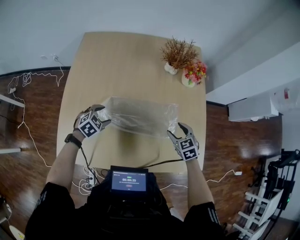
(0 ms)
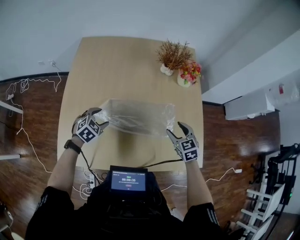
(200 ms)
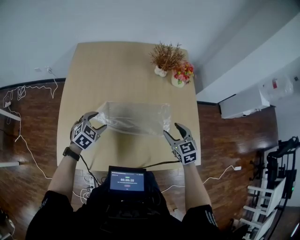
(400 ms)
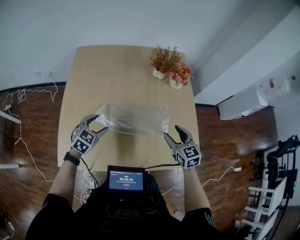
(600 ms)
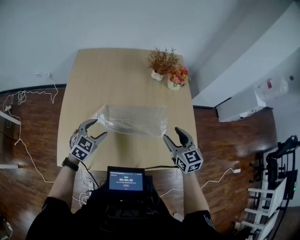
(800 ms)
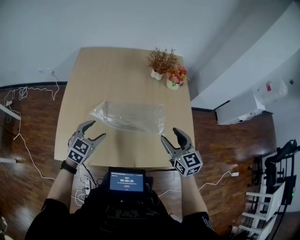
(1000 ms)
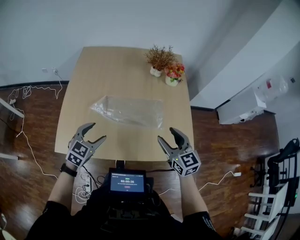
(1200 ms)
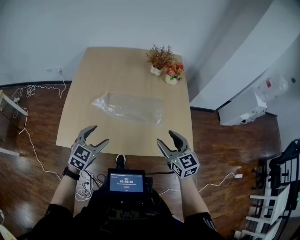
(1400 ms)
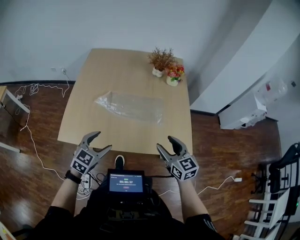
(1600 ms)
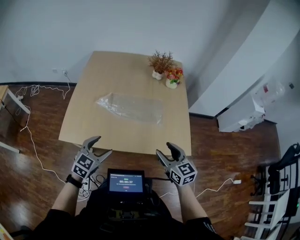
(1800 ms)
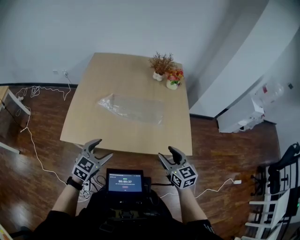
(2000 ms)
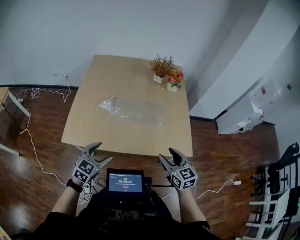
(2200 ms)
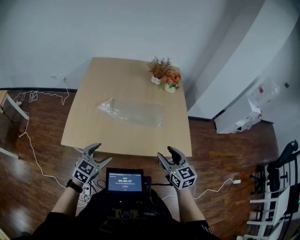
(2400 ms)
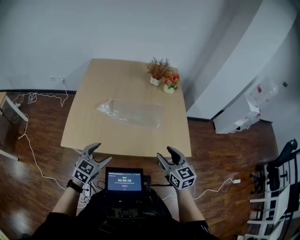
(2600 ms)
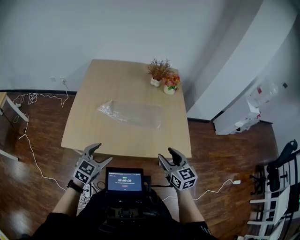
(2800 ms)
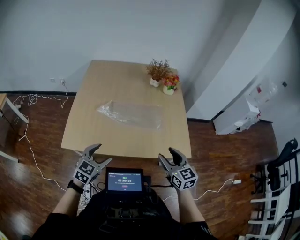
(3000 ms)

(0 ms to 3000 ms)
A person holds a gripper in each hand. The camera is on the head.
0 ms - 1600 ms: Both grippers move backward and upward, roughly 30 cm. The right gripper rotates approximately 30 degrees. The left gripper swivels about 30 degrees.
1600 ms - 3000 ms: Both grippers travel together backward, approximately 5 cm.

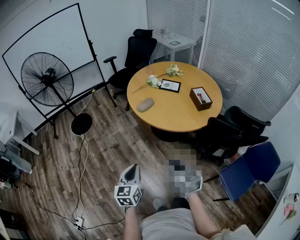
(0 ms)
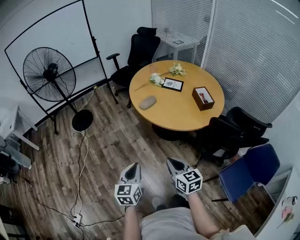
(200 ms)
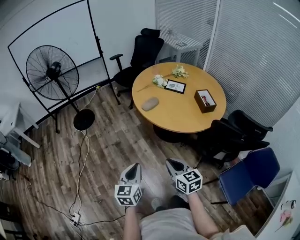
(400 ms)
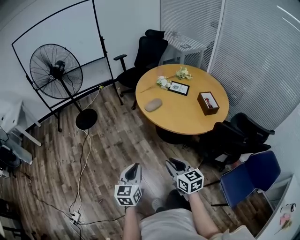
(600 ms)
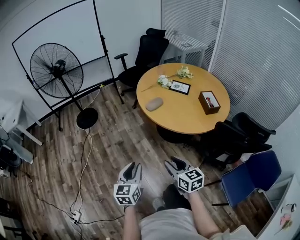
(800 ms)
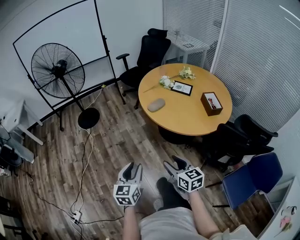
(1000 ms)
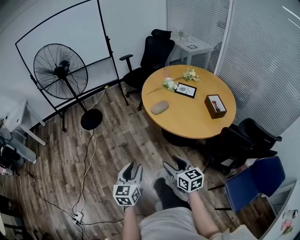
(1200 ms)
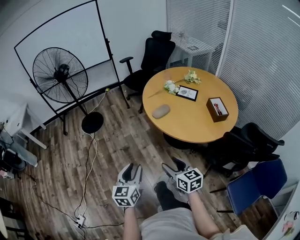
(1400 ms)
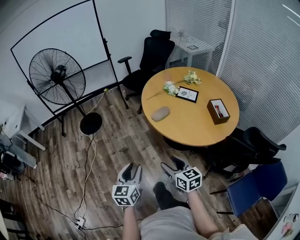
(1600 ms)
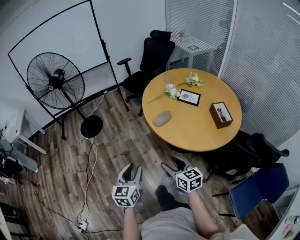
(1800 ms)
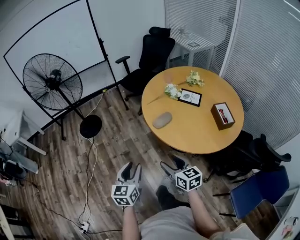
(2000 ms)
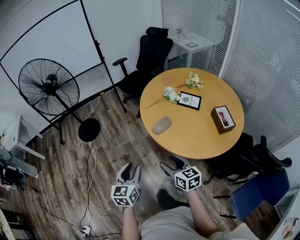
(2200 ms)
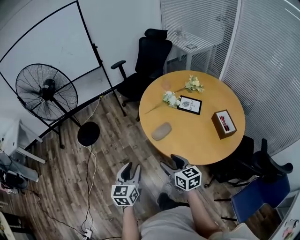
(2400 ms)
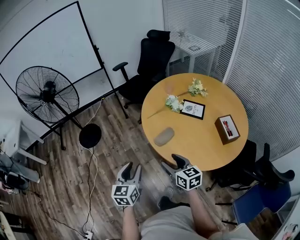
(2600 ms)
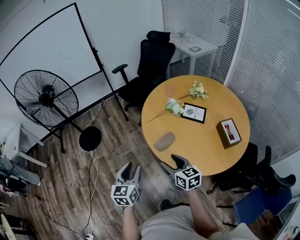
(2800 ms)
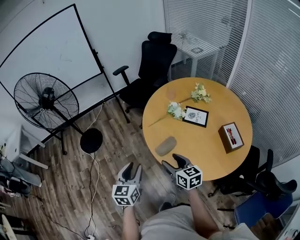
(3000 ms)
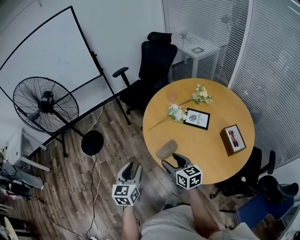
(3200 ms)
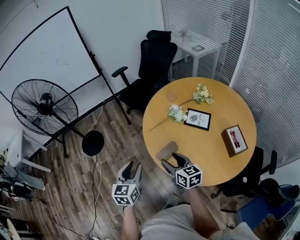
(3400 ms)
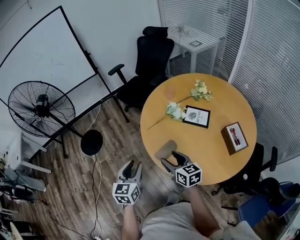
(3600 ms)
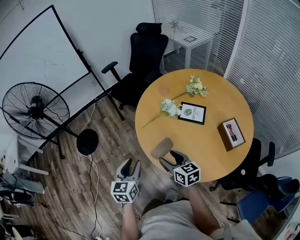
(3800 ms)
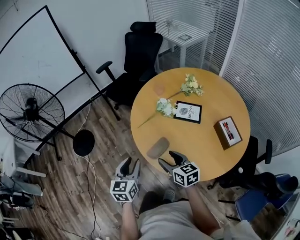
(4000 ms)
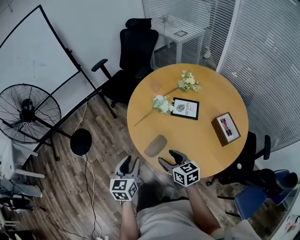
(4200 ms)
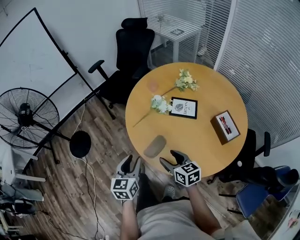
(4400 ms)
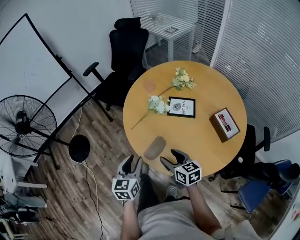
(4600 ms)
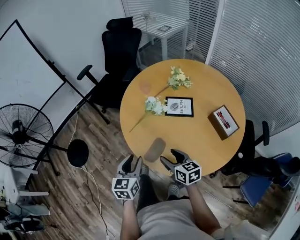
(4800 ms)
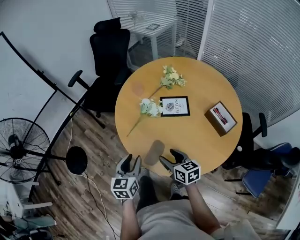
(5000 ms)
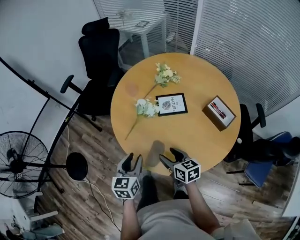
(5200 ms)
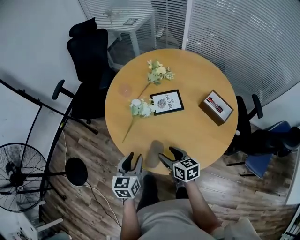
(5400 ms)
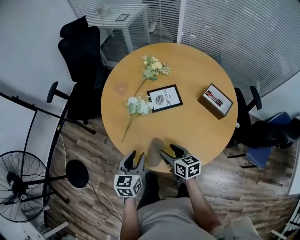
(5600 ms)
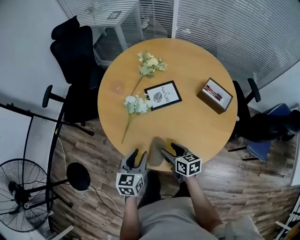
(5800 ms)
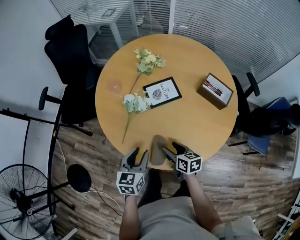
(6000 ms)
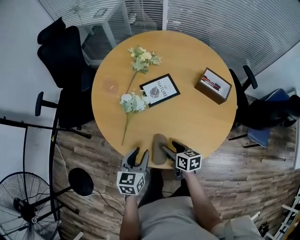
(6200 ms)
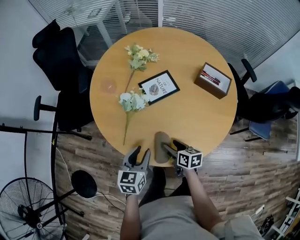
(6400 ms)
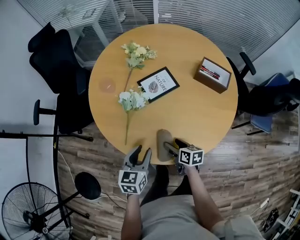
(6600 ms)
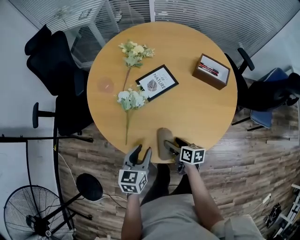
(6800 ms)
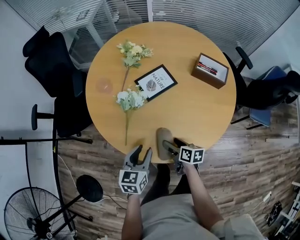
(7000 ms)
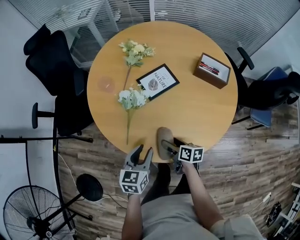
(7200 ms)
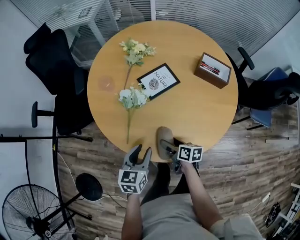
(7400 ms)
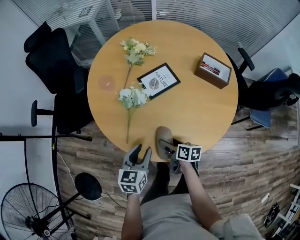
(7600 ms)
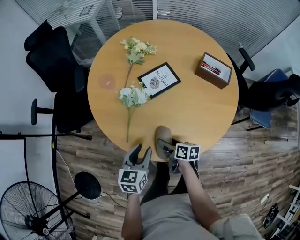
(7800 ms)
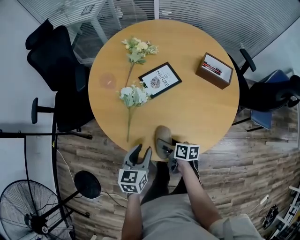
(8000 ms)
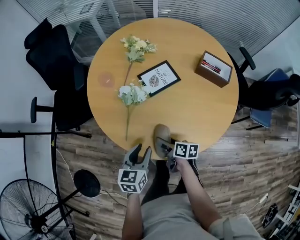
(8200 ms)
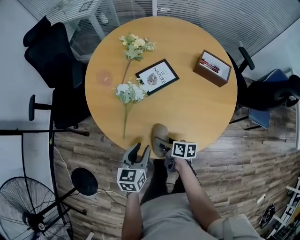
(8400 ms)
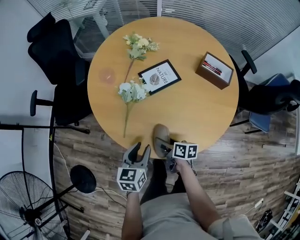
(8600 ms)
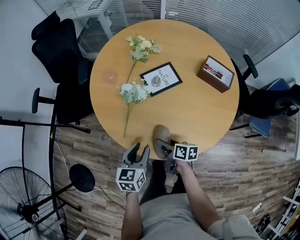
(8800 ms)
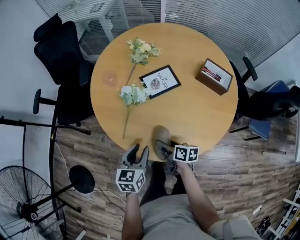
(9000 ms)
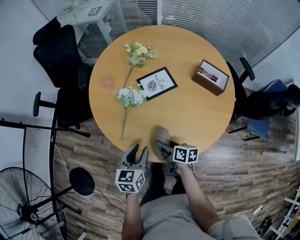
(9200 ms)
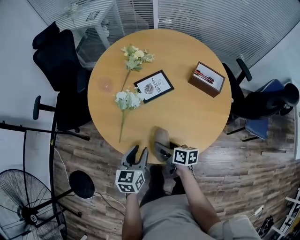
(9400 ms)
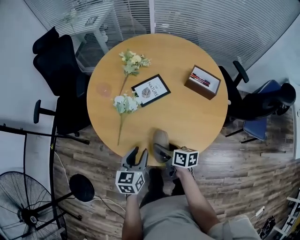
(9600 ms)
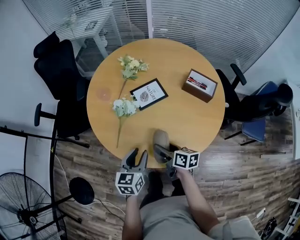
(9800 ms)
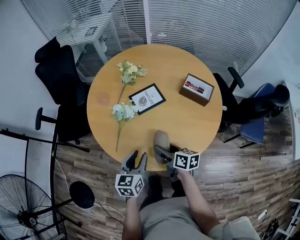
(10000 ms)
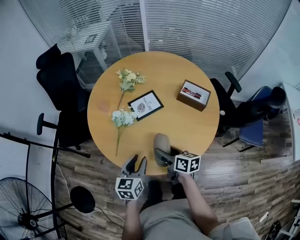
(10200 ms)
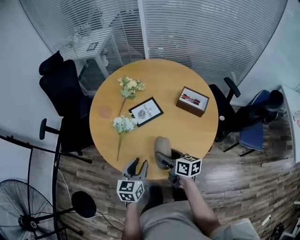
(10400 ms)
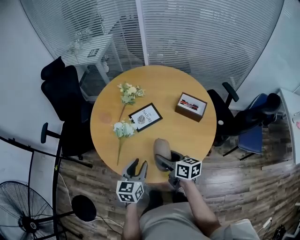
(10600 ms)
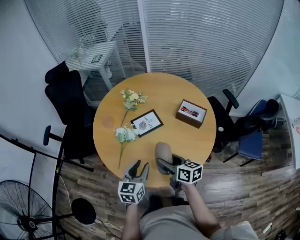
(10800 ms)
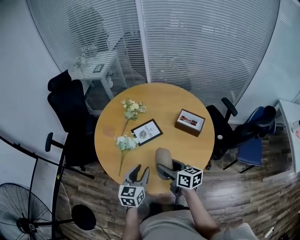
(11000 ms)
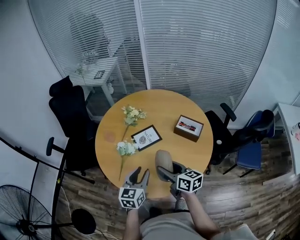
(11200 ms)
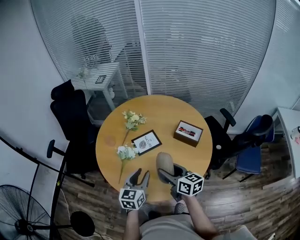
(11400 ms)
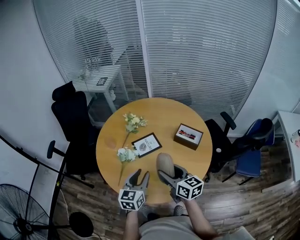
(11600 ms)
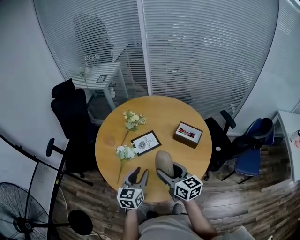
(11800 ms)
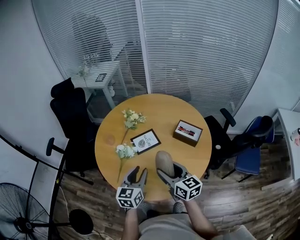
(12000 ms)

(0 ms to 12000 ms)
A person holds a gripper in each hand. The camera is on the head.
0 ms - 1600 ms: Both grippers travel together forward, approximately 10 cm. The left gripper opens up; the right gripper opens.
1600 ms - 3000 ms: Both grippers travel together forward, approximately 30 cm.
3000 ms - 4400 ms: The right gripper is displaced to the right, forward and downward by some 10 cm. Meanwhile the left gripper travels forward and to the right by approximately 10 cm.
4400 ms - 6000 ms: The left gripper ends up approximately 20 cm from where it was, and swivels roughly 40 degrees; the right gripper shifts roughly 10 cm downward, and rotates approximately 40 degrees.
6000 ms - 7600 ms: The right gripper goes about 5 cm downward, and rotates roughly 20 degrees.
7600 ms - 9000 ms: The grippers stay close to where they were, moving slightly.
9000 ms - 10400 ms: The right gripper travels upward and to the right by some 20 cm; the left gripper moves to the right and upward, roughly 10 cm.
10400 ms - 12000 ms: The two grippers go roughly 10 cm upward. The right gripper rotates roughly 30 degrees.

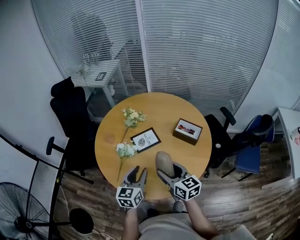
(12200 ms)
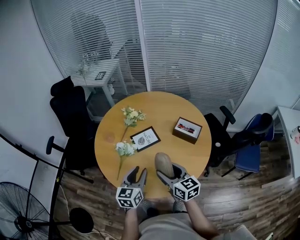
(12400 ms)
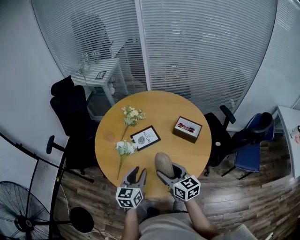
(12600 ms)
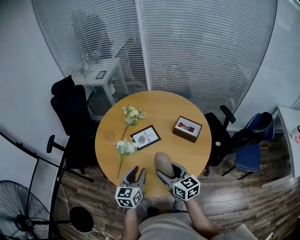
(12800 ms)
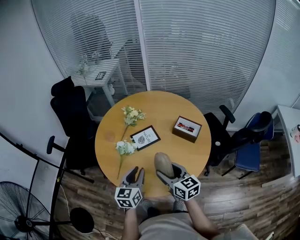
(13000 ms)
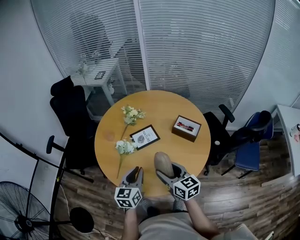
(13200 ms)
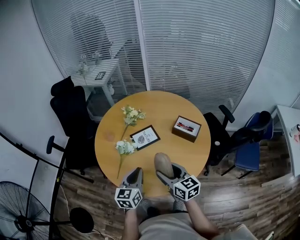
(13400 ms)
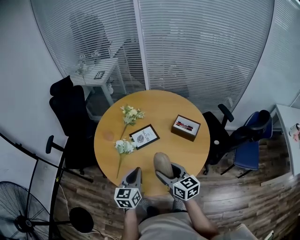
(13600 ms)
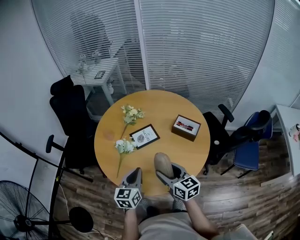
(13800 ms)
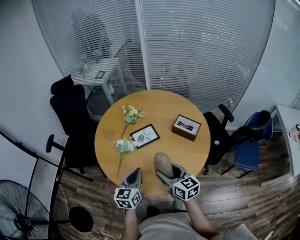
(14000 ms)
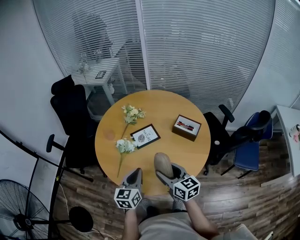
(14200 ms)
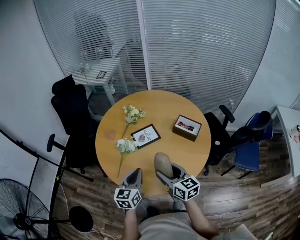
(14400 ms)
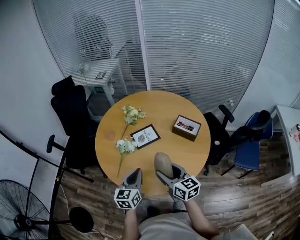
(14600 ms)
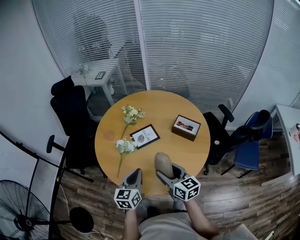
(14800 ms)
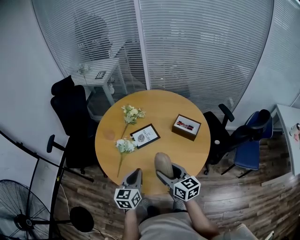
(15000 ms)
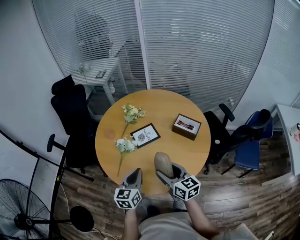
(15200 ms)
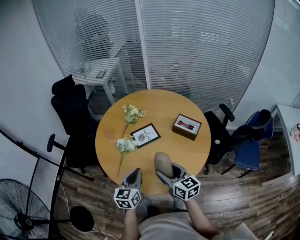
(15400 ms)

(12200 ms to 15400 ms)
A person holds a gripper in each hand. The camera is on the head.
12200 ms - 13800 ms: The left gripper closes its fingers.
13800 ms - 15400 ms: Neither gripper changes place.

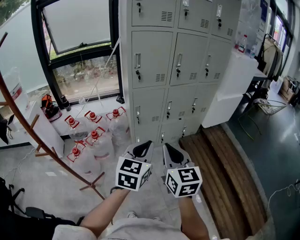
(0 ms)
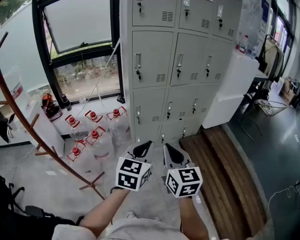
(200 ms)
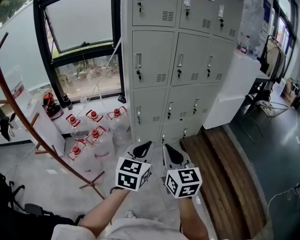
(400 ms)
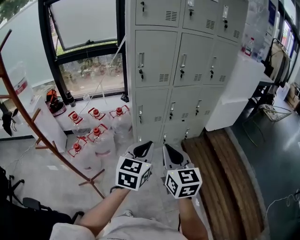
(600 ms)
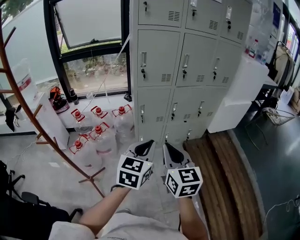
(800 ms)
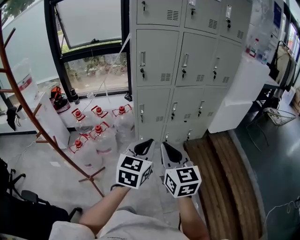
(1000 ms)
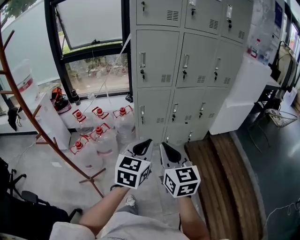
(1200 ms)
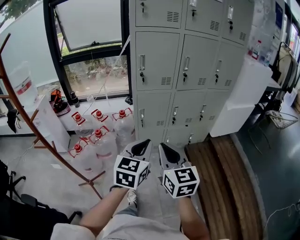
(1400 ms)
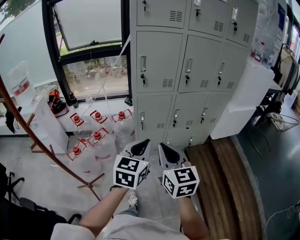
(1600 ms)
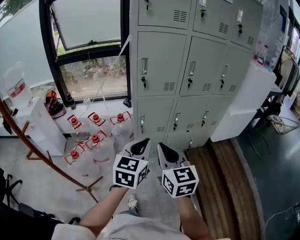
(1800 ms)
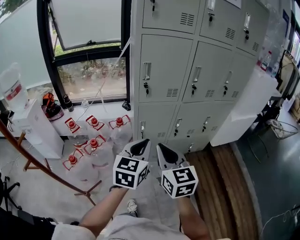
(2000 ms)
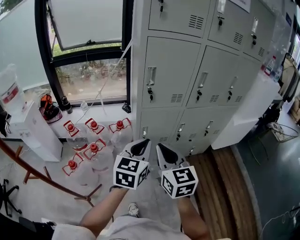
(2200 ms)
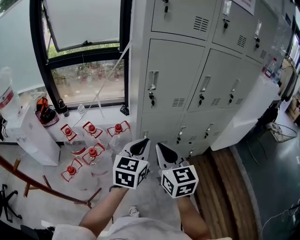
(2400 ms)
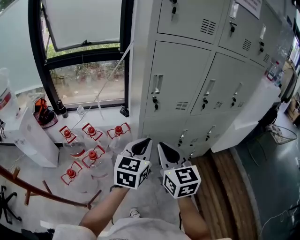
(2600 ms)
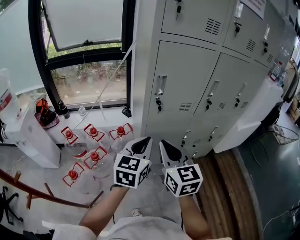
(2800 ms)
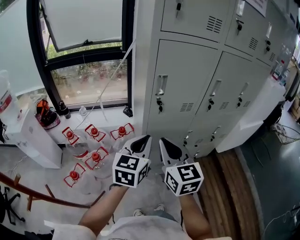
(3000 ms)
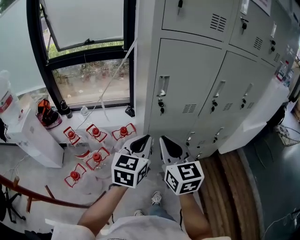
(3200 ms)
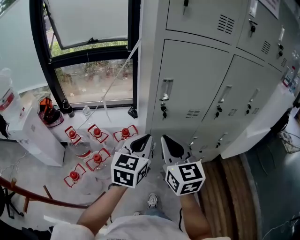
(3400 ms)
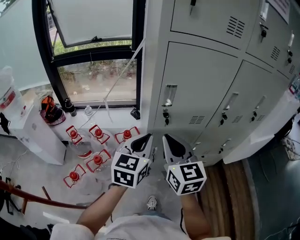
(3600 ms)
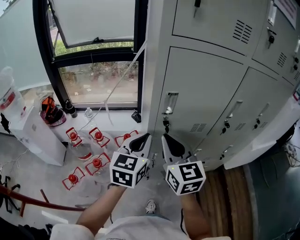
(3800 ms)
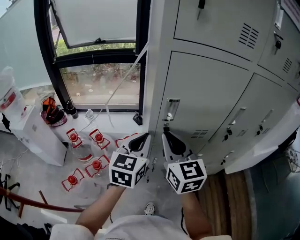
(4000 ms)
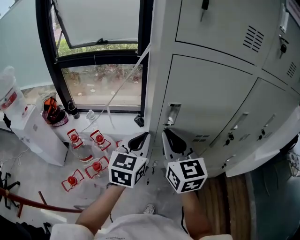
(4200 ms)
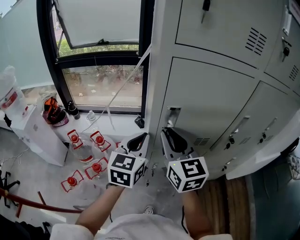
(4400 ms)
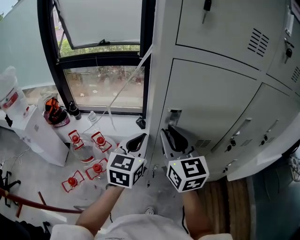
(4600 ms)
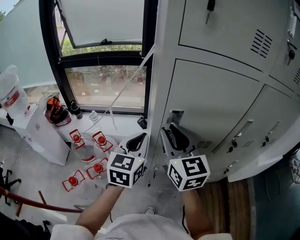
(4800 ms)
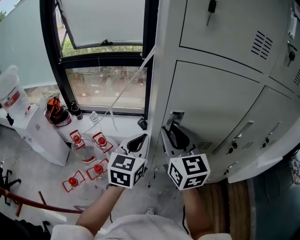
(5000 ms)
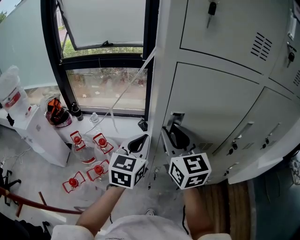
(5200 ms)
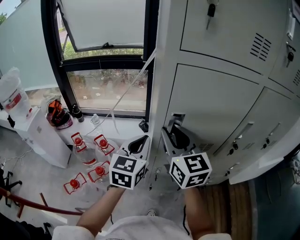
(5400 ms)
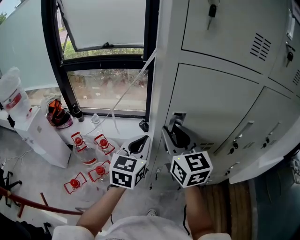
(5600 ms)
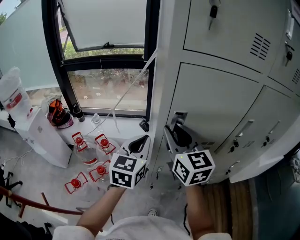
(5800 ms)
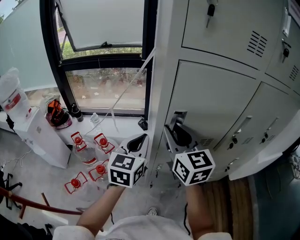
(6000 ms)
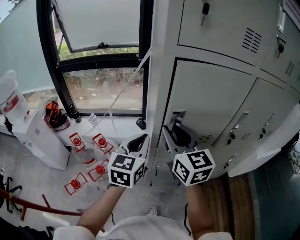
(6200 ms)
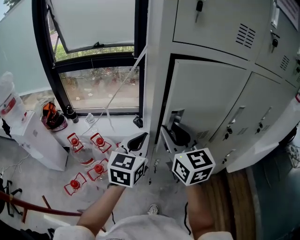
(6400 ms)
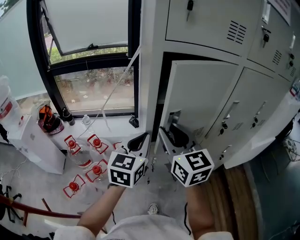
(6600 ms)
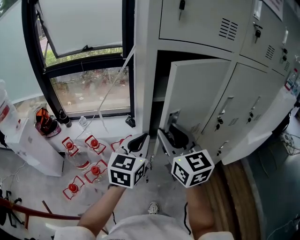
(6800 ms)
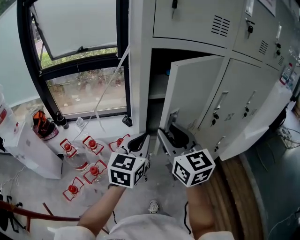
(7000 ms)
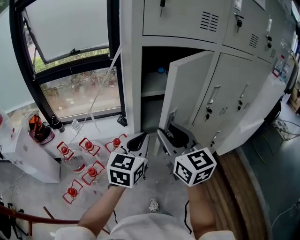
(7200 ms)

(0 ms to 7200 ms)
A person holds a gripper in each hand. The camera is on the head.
0 ms - 1400 ms: The left gripper ends up approximately 5 cm from where it was.
1400 ms - 2800 ms: The two grippers go approximately 30 cm forward and to the left.
2800 ms - 4400 ms: Both grippers travel together forward, approximately 20 cm.
4400 ms - 5800 ms: The grippers stay close to where they were, moving slightly.
5800 ms - 7200 ms: The right gripper is displaced backward by approximately 10 cm, while the left gripper goes approximately 10 cm backward and to the right.
